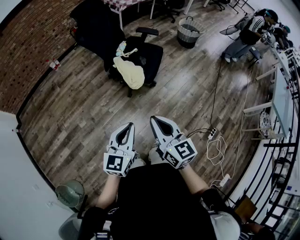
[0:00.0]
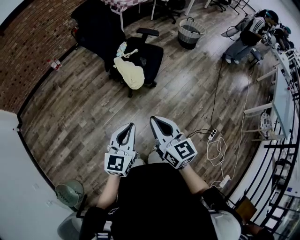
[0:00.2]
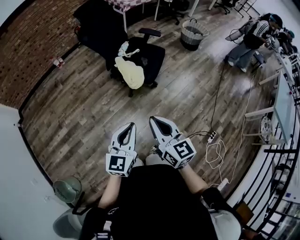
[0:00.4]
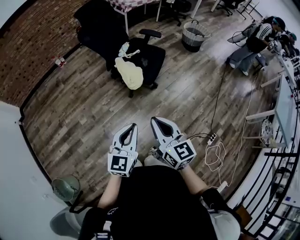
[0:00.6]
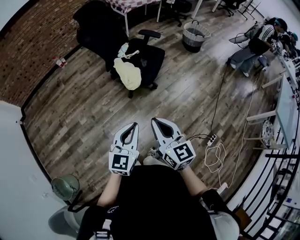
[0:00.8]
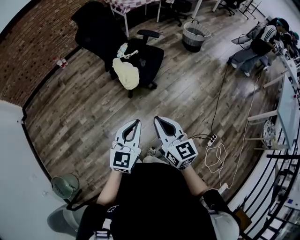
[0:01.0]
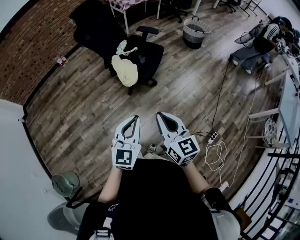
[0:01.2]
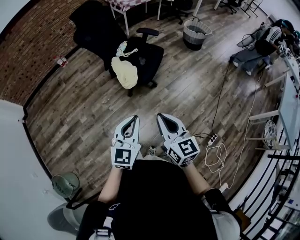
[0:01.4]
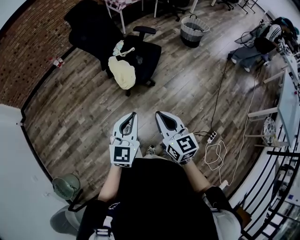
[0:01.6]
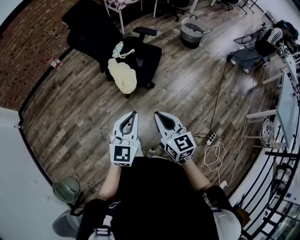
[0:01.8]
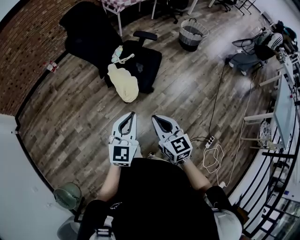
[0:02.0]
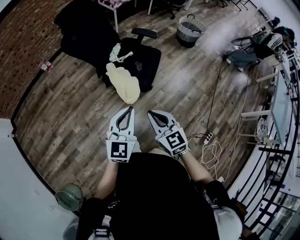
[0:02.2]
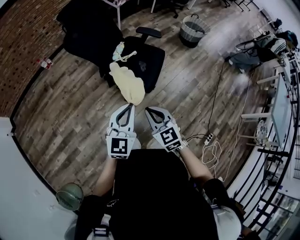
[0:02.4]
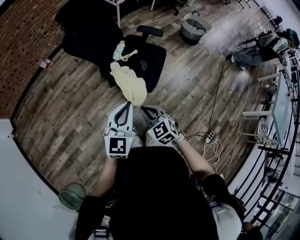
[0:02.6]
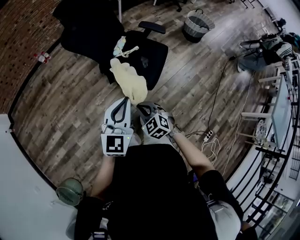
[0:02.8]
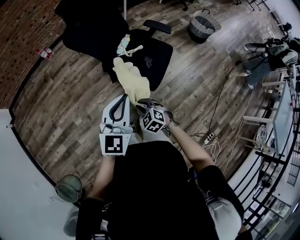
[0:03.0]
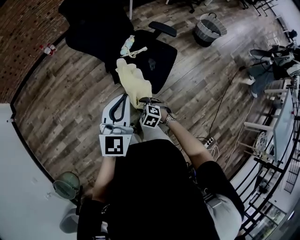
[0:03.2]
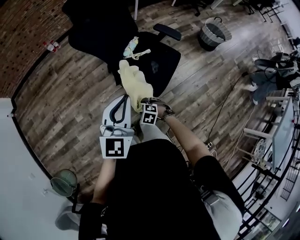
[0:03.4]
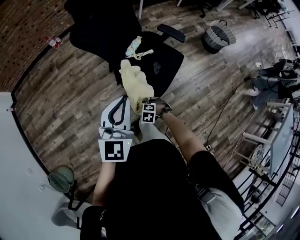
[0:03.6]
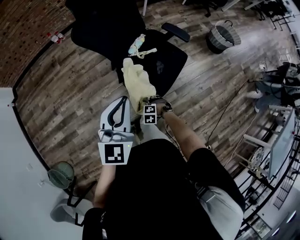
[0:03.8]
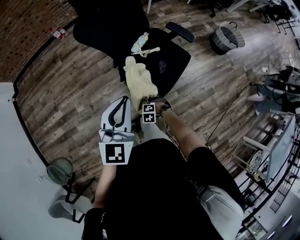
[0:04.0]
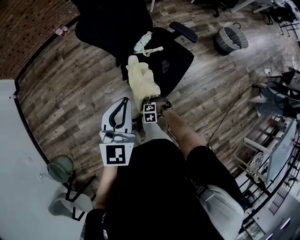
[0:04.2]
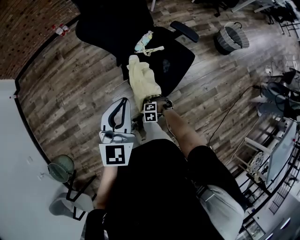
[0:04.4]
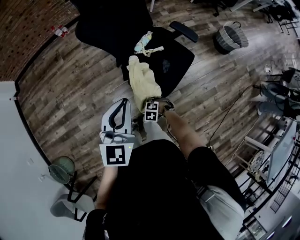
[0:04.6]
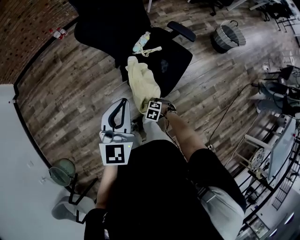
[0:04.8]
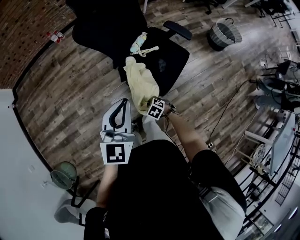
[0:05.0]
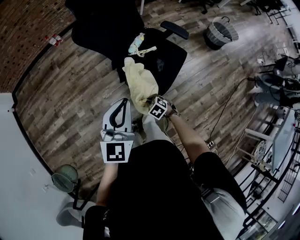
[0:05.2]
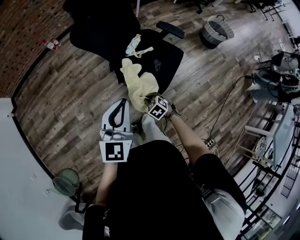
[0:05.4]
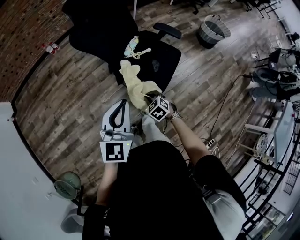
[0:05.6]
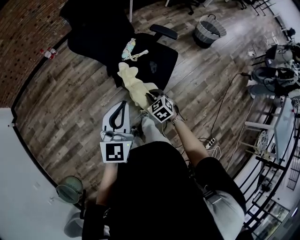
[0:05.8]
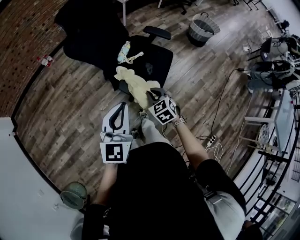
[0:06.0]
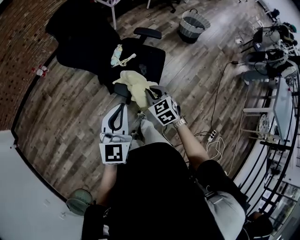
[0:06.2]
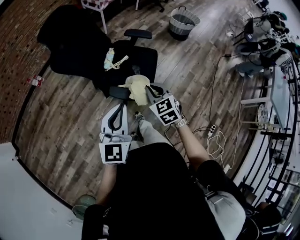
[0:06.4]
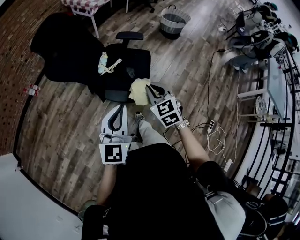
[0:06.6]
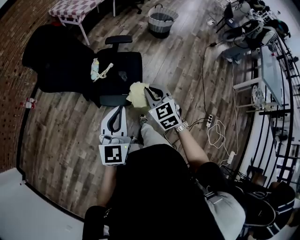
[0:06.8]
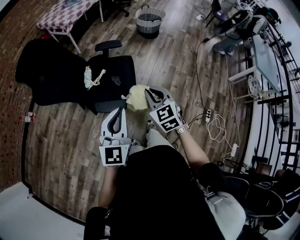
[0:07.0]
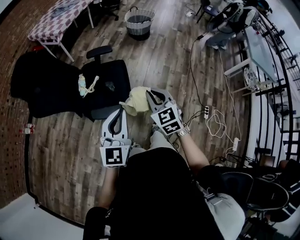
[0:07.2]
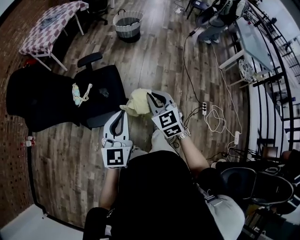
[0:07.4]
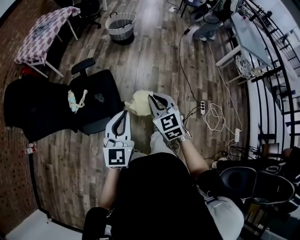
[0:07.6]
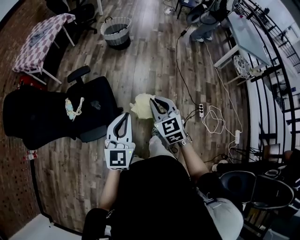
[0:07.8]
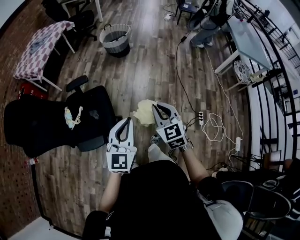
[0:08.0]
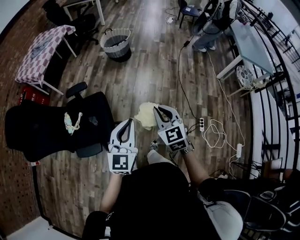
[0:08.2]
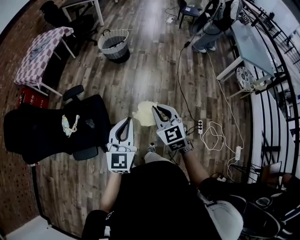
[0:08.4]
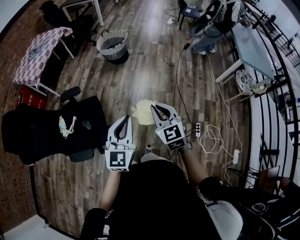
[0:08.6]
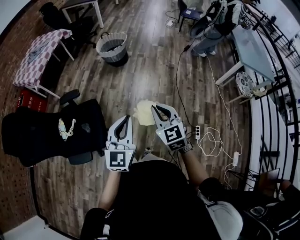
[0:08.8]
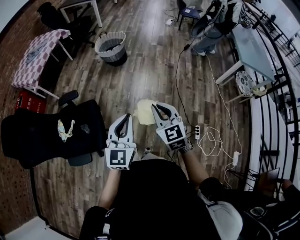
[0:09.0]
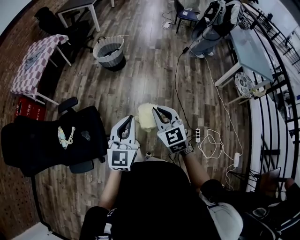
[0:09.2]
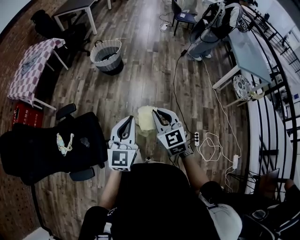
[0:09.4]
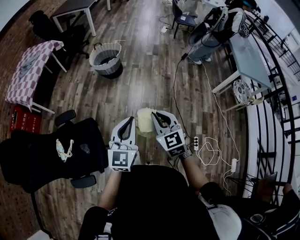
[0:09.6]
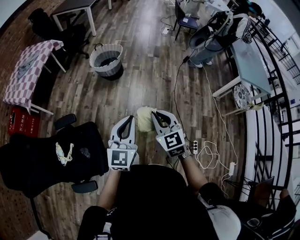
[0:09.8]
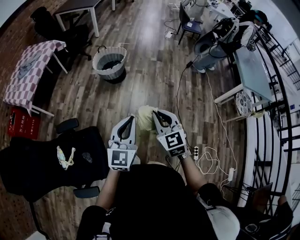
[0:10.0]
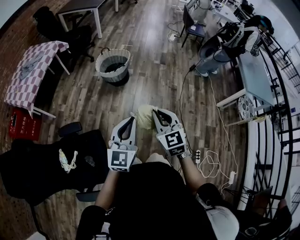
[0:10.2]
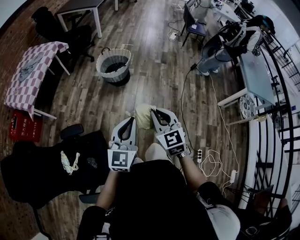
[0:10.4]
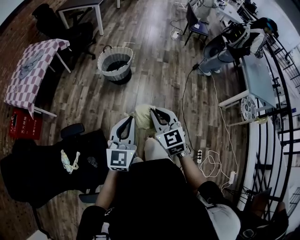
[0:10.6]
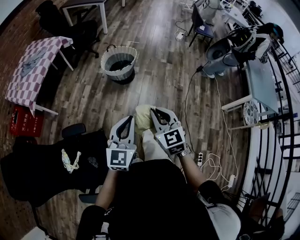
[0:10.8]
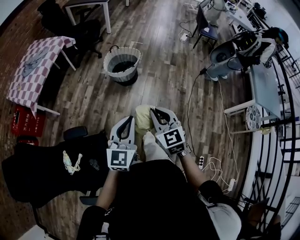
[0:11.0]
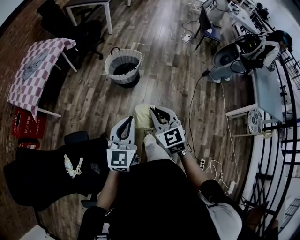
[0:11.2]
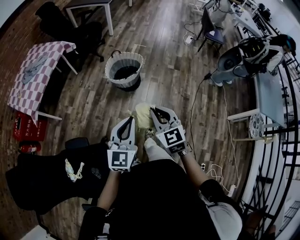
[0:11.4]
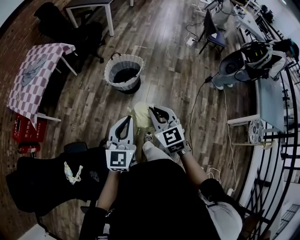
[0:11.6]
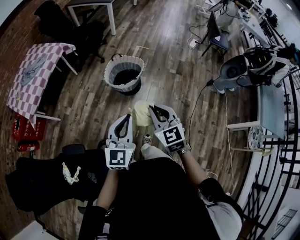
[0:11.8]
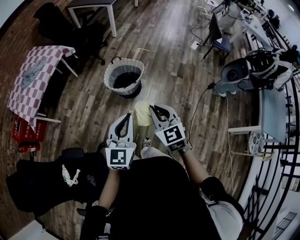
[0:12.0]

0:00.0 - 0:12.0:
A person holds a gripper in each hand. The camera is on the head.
0:00.0 - 0:01.6: Both grippers move to the right, roughly 15 cm.
0:01.6 - 0:03.0: The left gripper shifts about 30 cm forward and to the left; the right gripper moves forward, downward and to the left, about 40 cm, and points its fingers roughly 40 degrees further downward.
0:03.0 - 0:04.4: The right gripper shifts approximately 20 cm downward, turns by roughly 50 degrees, and opens, while the left gripper moves about 10 cm.
0:04.4 - 0:06.0: The right gripper is displaced upward by approximately 25 cm, angles its fingers upward, by some 40 degrees, and closes up; the left gripper changes place by approximately 5 cm.
0:06.0 - 0:07.6: The left gripper ends up some 25 cm from where it was, and turns by about 40 degrees. The right gripper shifts by roughly 30 cm, and changes its angle by approximately 50 degrees.
0:07.6 - 0:09.0: Both grippers travel together to the right and forward, approximately 30 cm.
0:09.0 - 0:10.4: Both grippers move forward, some 30 cm.
0:10.4 - 0:12.0: The two grippers go about 30 cm forward.

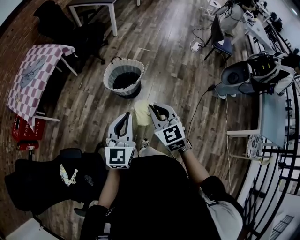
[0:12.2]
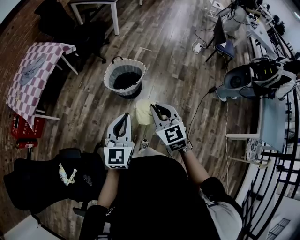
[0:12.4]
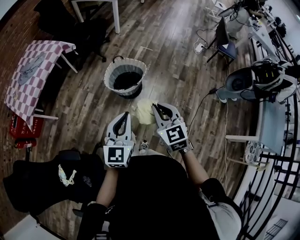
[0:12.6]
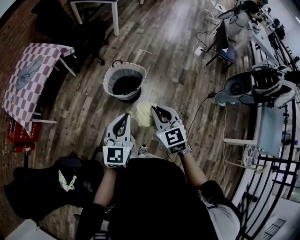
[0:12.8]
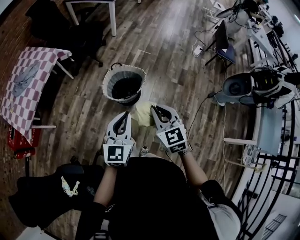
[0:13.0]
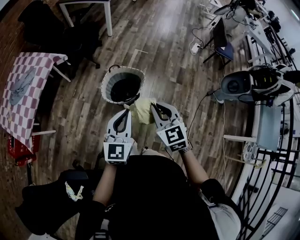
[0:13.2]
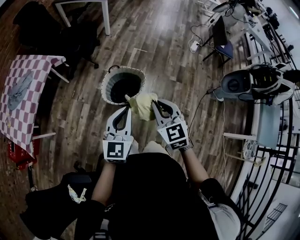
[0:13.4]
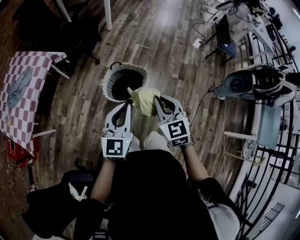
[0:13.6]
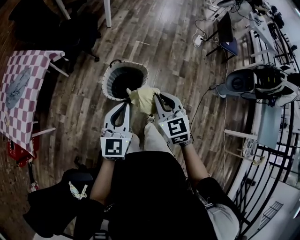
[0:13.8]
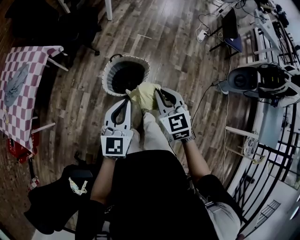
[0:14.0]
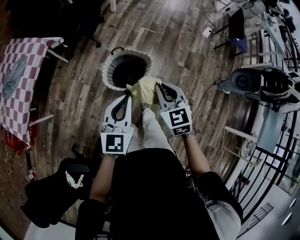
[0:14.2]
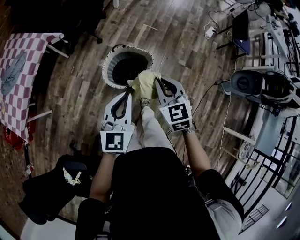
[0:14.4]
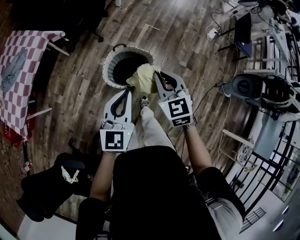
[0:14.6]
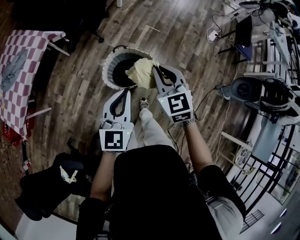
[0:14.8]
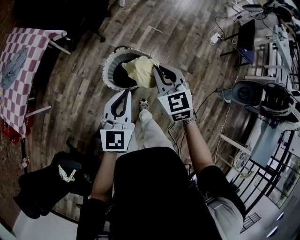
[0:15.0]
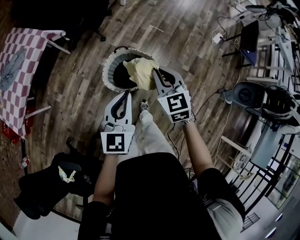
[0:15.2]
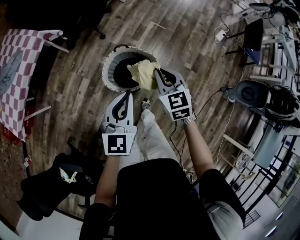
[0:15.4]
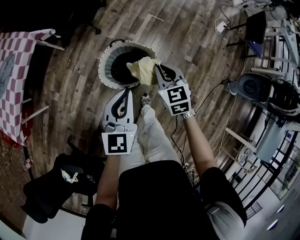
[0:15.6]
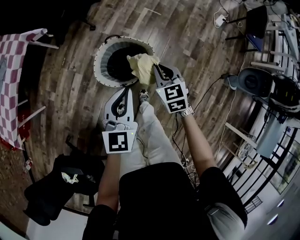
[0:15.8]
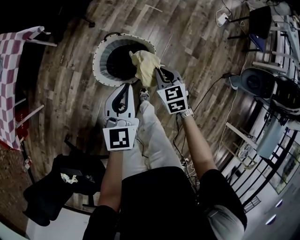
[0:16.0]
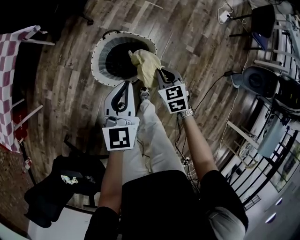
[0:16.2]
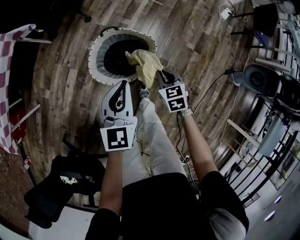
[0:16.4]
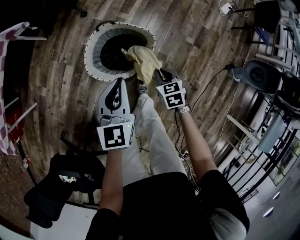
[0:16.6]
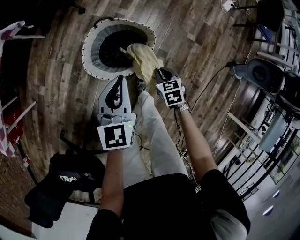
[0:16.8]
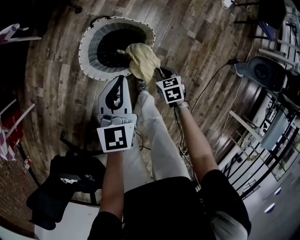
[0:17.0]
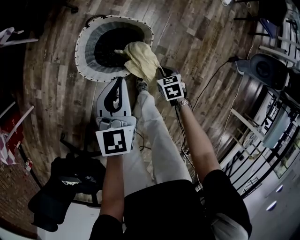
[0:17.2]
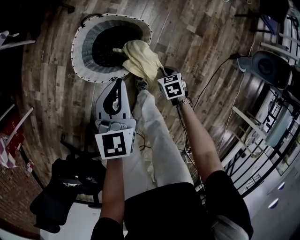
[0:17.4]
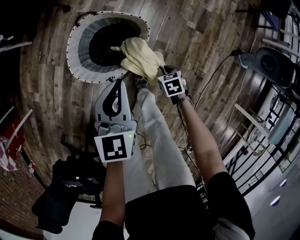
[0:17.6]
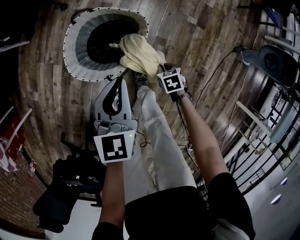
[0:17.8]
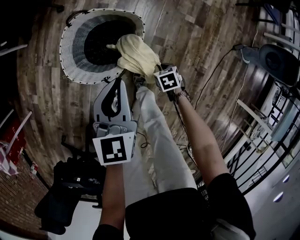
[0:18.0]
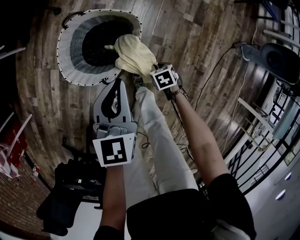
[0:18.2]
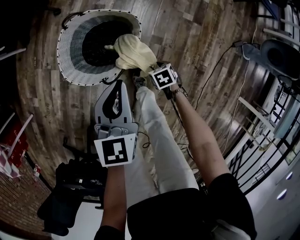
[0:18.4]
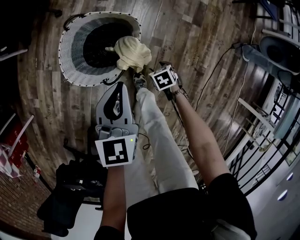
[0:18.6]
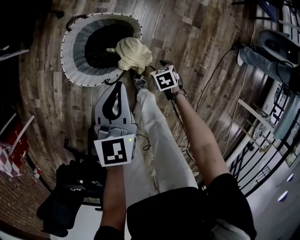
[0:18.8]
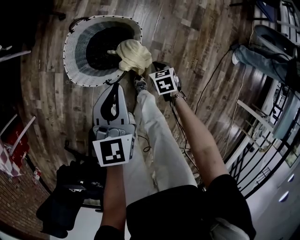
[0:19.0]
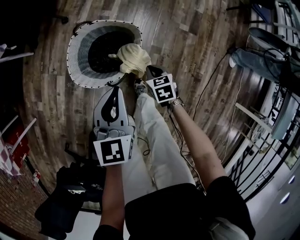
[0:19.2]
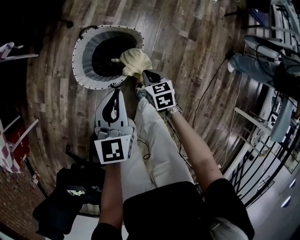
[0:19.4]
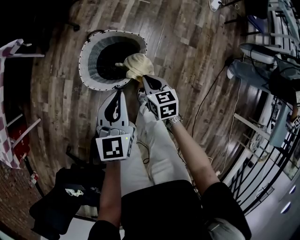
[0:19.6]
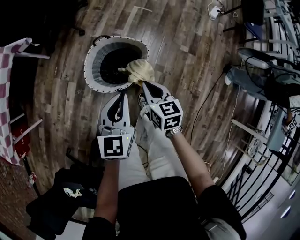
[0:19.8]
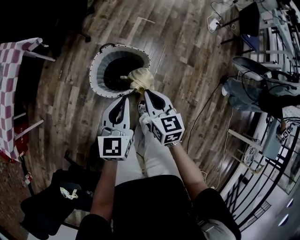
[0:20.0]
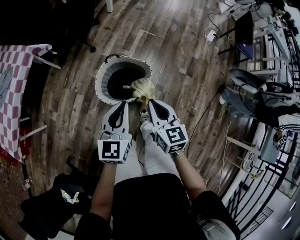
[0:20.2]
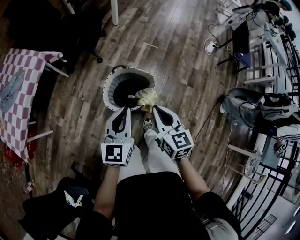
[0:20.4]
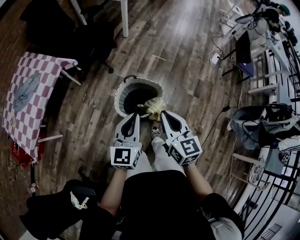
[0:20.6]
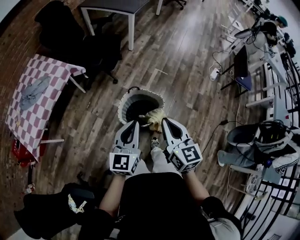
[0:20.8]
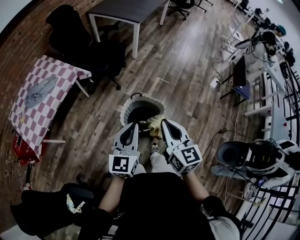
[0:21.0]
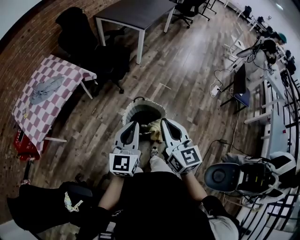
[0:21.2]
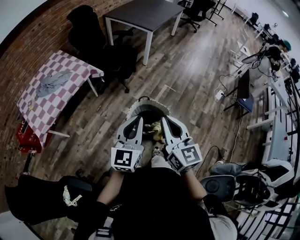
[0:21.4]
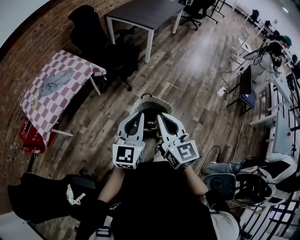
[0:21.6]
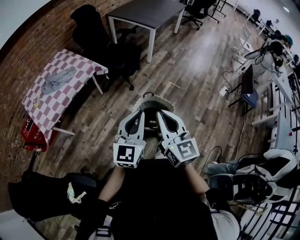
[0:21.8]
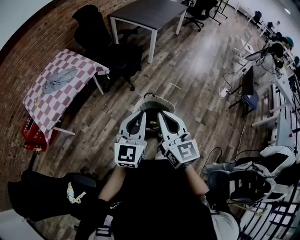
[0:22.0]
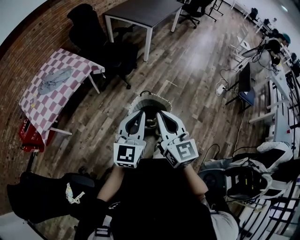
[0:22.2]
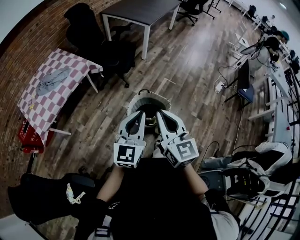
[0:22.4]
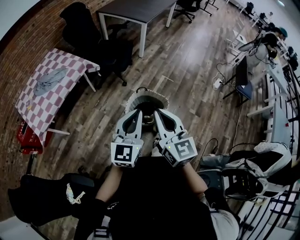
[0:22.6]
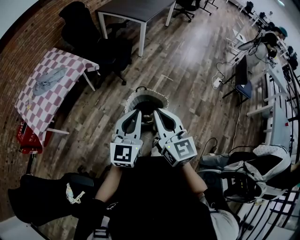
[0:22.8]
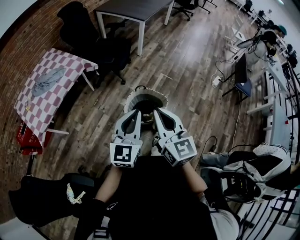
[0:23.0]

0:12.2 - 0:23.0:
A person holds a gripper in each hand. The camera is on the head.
0:12.2 - 0:13.8: Both grippers move forward, approximately 25 cm.
0:13.8 - 0:15.2: The right gripper is displaced forward by some 15 cm. The left gripper moves forward, approximately 10 cm.
0:15.2 - 0:16.8: The left gripper moves downward, approximately 20 cm, while the right gripper goes roughly 40 cm downward, and points its fingers roughly 30 degrees further downward.
0:16.8 - 0:18.4: The right gripper is displaced downward by some 20 cm, and opens up. The left gripper shifts approximately 10 cm downward.
0:18.4 - 0:20.0: The right gripper goes about 40 cm upward, points its fingers some 50 degrees further upward, and closes, while the left gripper goes some 15 cm upward.
0:20.0 - 0:21.4: Both grippers move upward, approximately 35 cm. The left gripper rotates approximately 20 degrees, while the right gripper changes its angle by roughly 30 degrees.
0:21.4 - 0:23.0: The grippers move only a little.

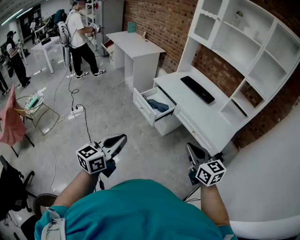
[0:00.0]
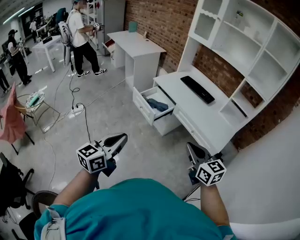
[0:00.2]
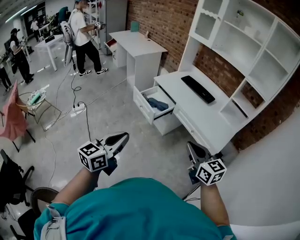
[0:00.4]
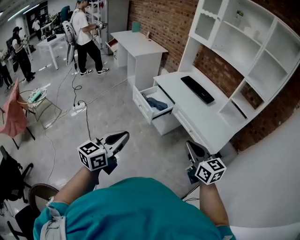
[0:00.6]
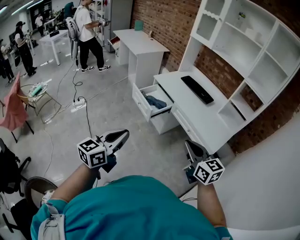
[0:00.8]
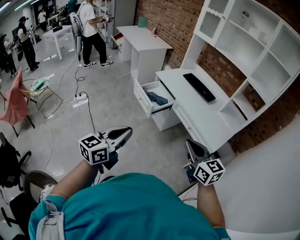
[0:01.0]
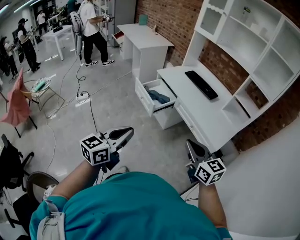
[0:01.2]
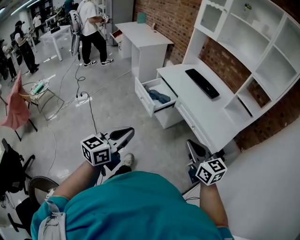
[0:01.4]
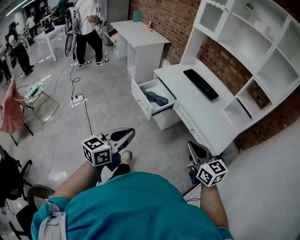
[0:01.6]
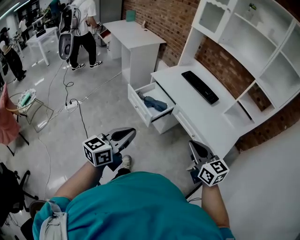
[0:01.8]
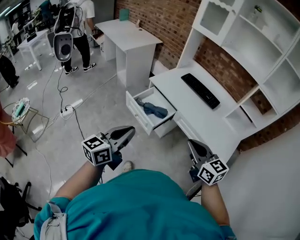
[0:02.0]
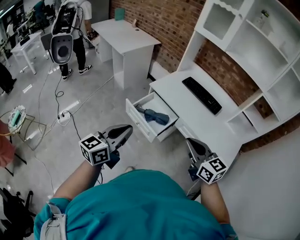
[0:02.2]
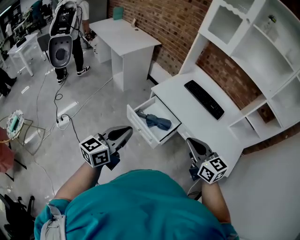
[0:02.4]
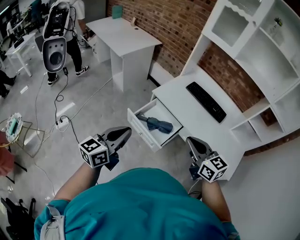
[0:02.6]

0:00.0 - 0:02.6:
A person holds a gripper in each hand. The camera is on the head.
0:00.0 - 0:01.2: The right gripper heads to the right, covering approximately 5 cm. The left gripper travels to the right by approximately 10 cm.
0:01.2 - 0:02.6: The two grippers travel together, forward and to the left, about 40 cm.
